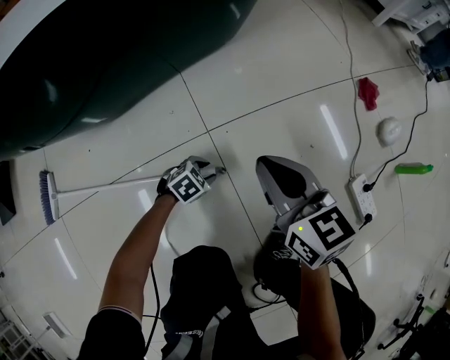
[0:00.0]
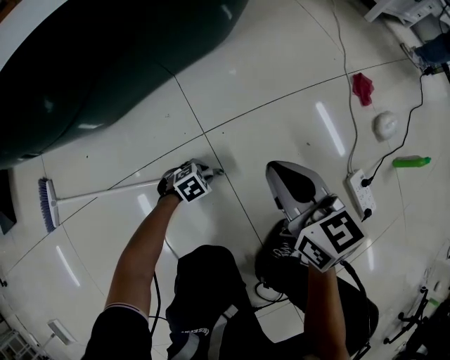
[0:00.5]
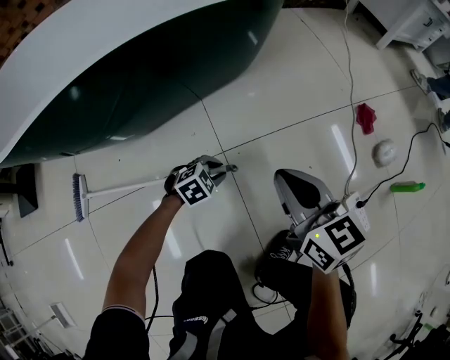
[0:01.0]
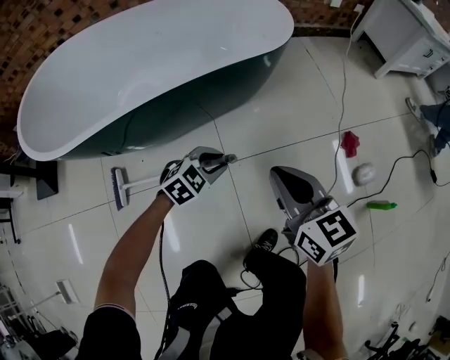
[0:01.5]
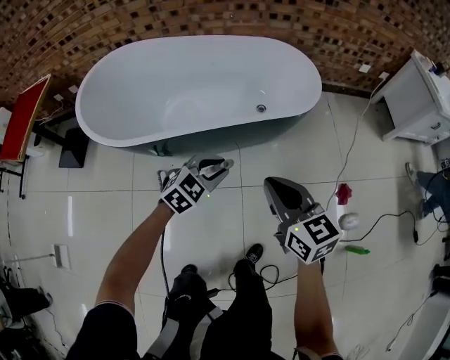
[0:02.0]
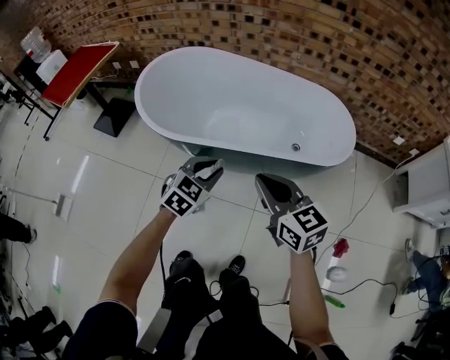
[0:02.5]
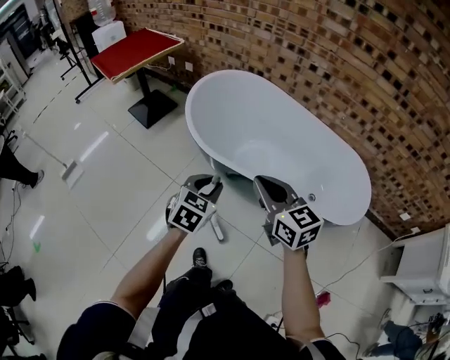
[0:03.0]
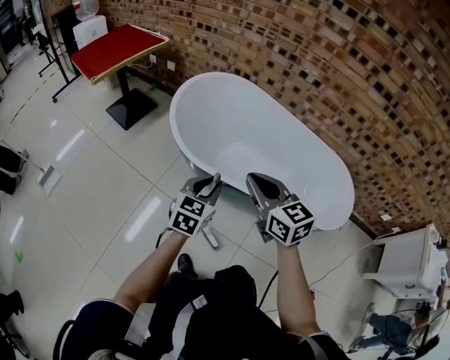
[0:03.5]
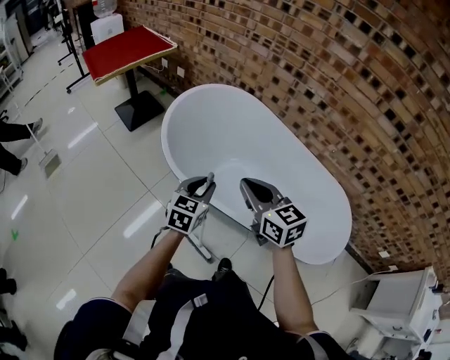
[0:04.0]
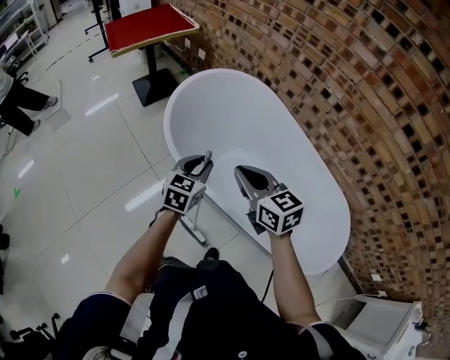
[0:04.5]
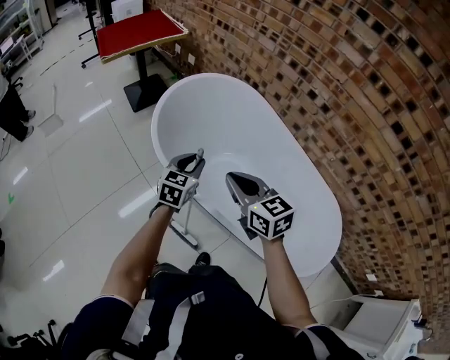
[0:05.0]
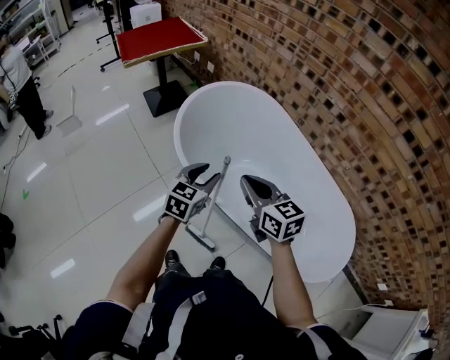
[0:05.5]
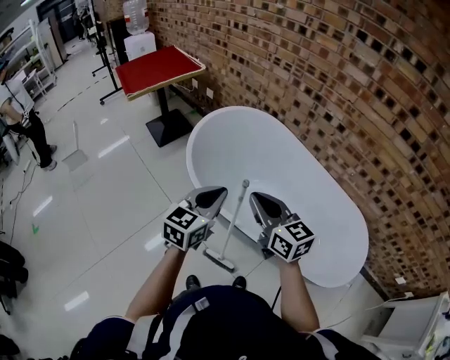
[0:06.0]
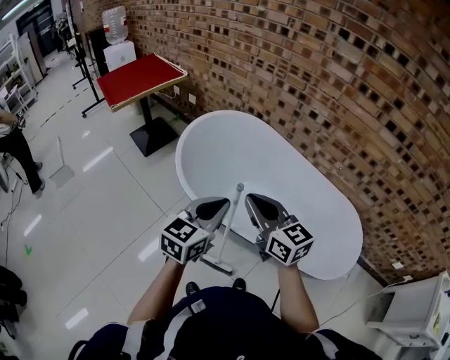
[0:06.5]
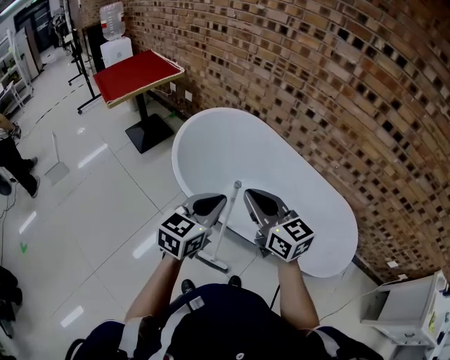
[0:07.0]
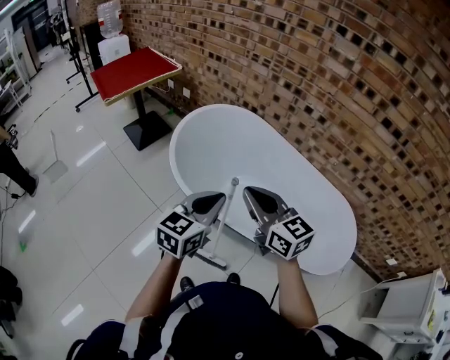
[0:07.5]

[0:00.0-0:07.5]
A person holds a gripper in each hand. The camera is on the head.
0:00.0 to 0:02.0: The two grippers go some 60 cm upward. The right gripper swivels about 20 degrees, while the left gripper rotates some 40 degrees.
0:02.0 to 0:04.0: The left gripper moves approximately 35 cm, and swivels some 70 degrees. Meanwhile the right gripper changes place by about 40 cm, and changes its angle by some 50 degrees.
0:05.5 to 0:07.5: The right gripper travels upward by some 10 cm. The left gripper is displaced upward and backward by about 15 cm, turns by some 20 degrees, and closes.

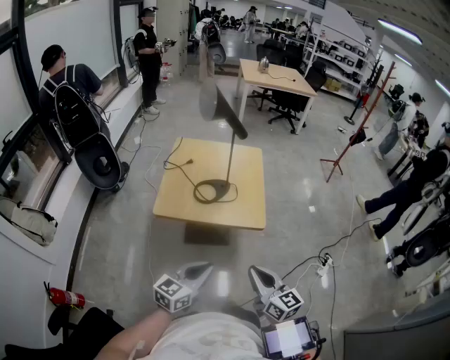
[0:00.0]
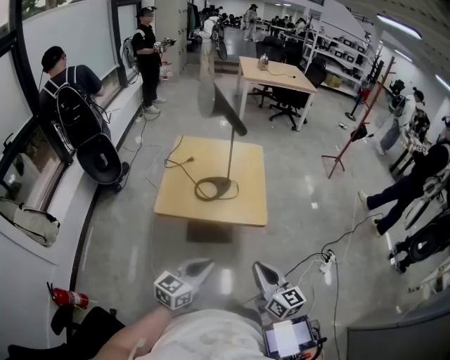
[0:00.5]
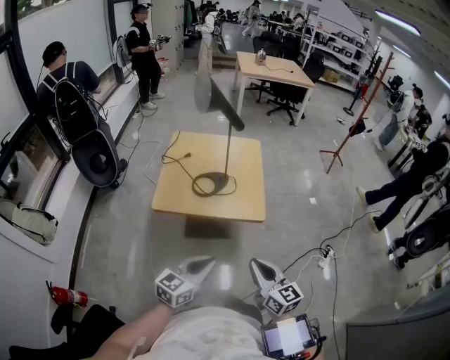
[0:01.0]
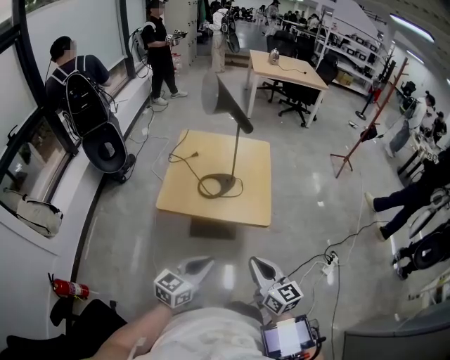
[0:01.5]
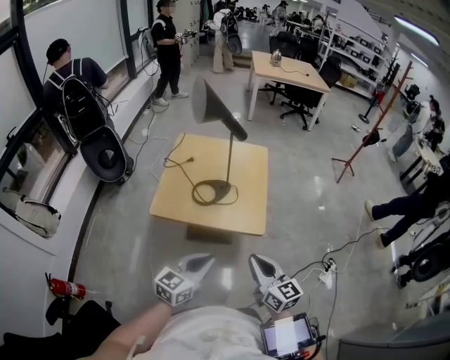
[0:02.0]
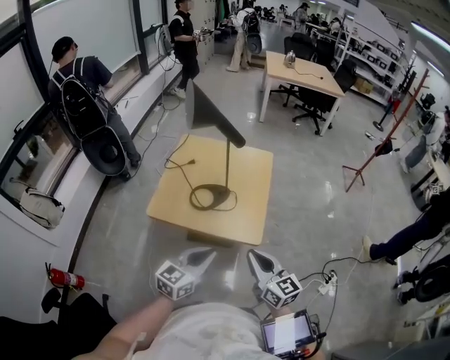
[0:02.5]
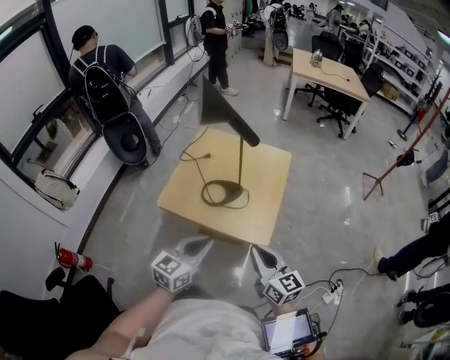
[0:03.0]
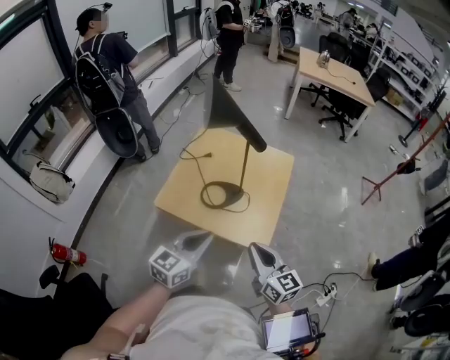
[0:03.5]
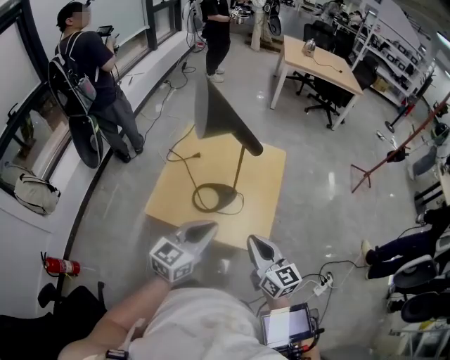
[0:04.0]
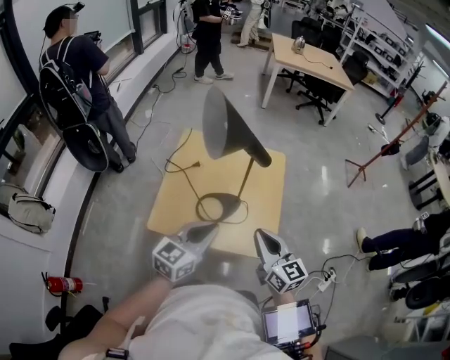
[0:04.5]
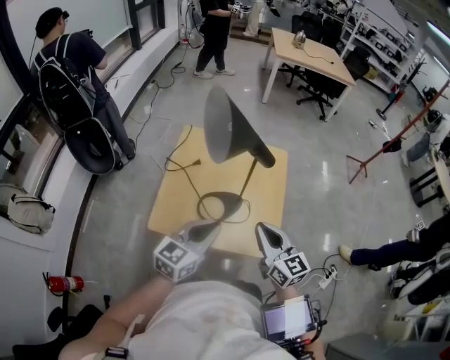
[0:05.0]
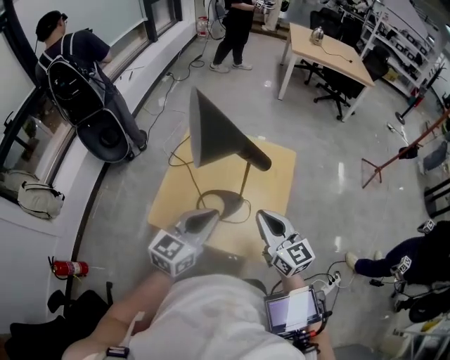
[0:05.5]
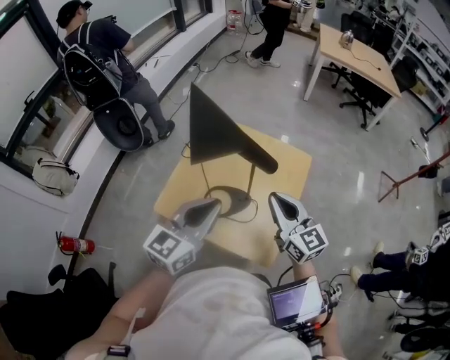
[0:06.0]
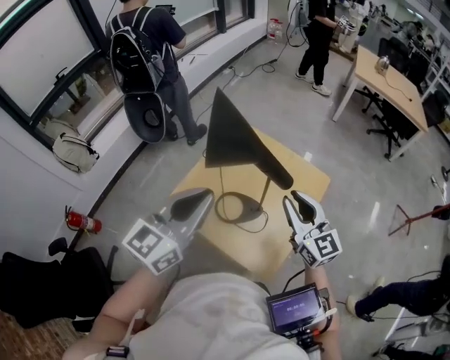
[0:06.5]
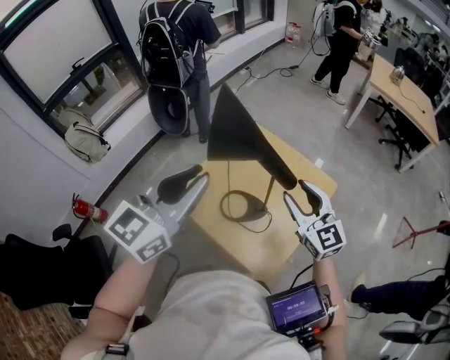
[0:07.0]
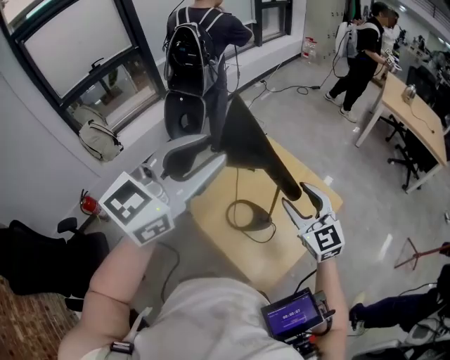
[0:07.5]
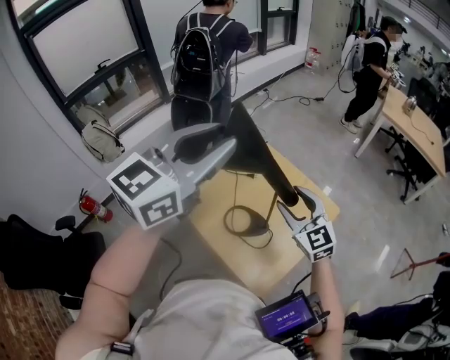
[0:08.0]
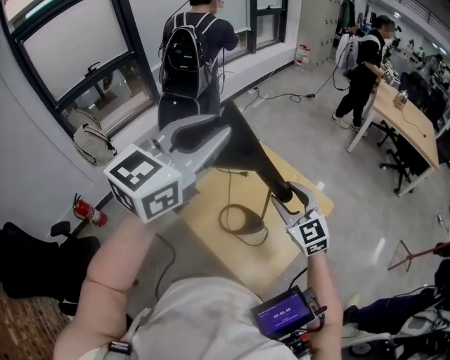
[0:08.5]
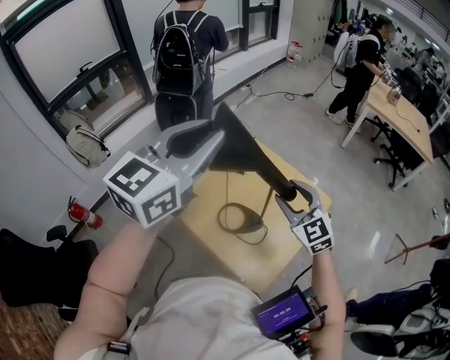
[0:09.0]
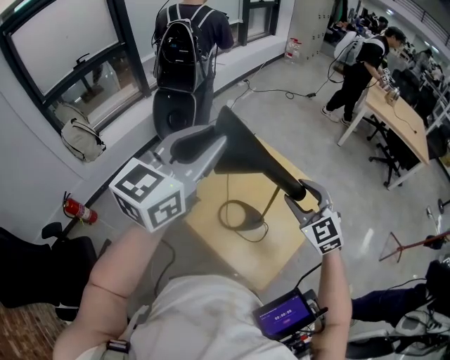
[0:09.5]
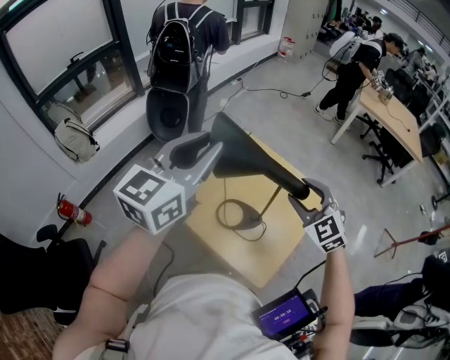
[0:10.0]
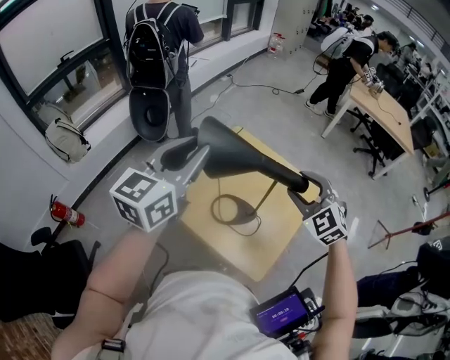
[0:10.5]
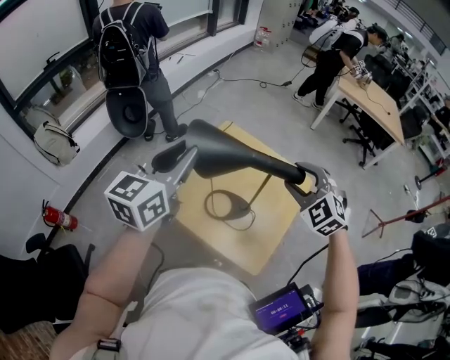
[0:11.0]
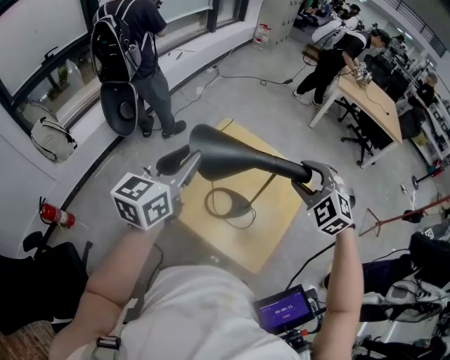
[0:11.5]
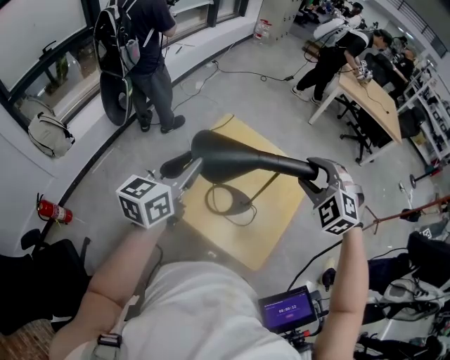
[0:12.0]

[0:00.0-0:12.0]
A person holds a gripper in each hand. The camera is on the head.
0:00.0 to 0:02.0: The grippers both shift forward by roughly 10 cm.
0:02.0 to 0:04.0: The grippers both shift forward by roughly 20 cm.
0:04.0 to 0:06.0: The left gripper shifts about 10 cm forward and upward; the right gripper goes roughly 20 cm forward.
0:06.0 to 0:08.0: The right gripper is displaced forward by about 10 cm, changes its angle by approximately 30 degrees, and opens; the left gripper is displaced upward by about 25 cm, swivels some 20 degrees, and opens.
0:08.0 to 0:10.0: The right gripper turns by about 20 degrees. The left gripper is displaced downward by some 5 cm.
0:10.0 to 0:12.0: The right gripper turns by about 30 degrees. Meanwhile the left gripper shifts some 15 cm downward.

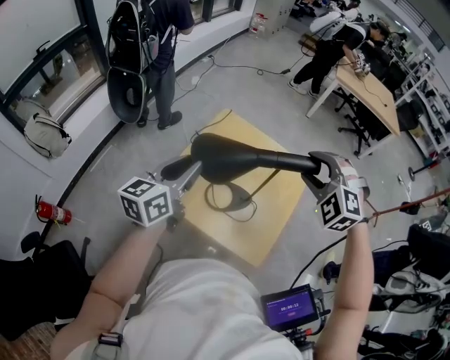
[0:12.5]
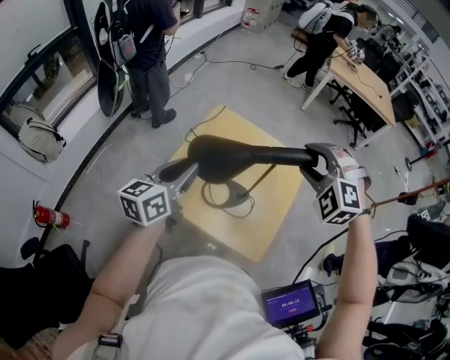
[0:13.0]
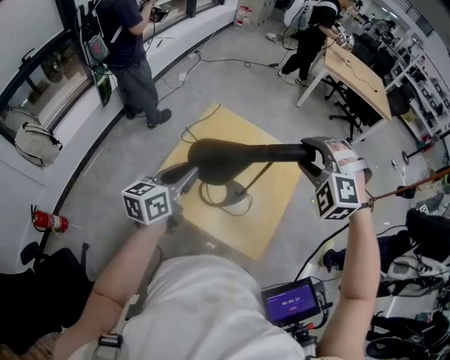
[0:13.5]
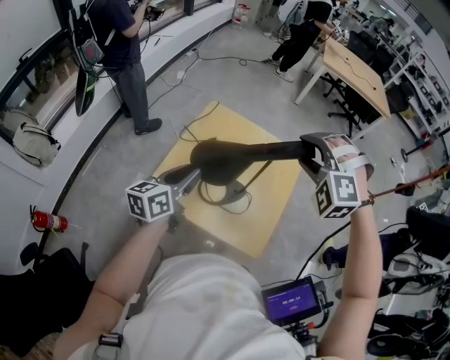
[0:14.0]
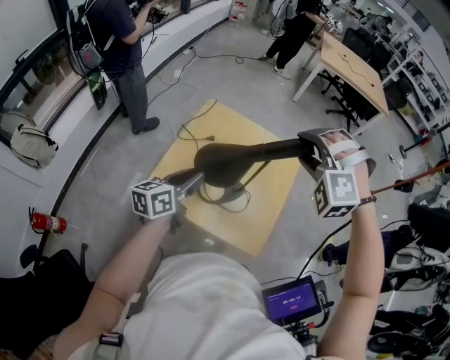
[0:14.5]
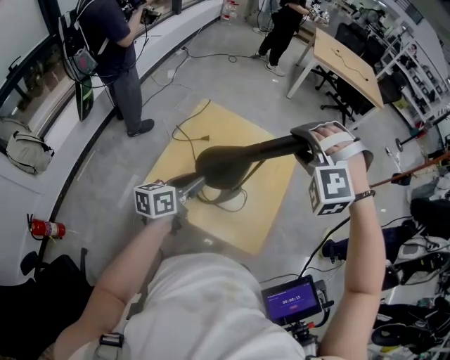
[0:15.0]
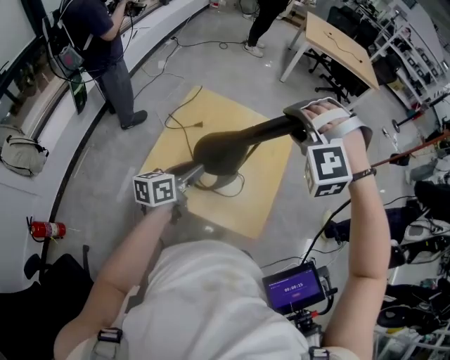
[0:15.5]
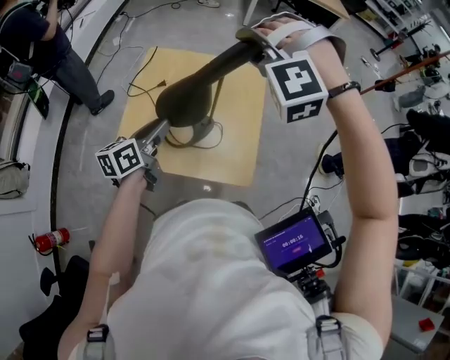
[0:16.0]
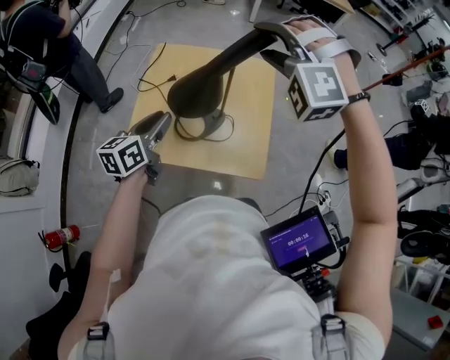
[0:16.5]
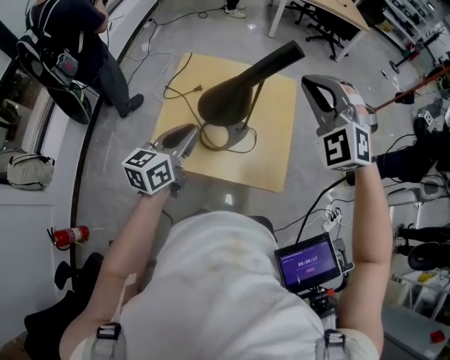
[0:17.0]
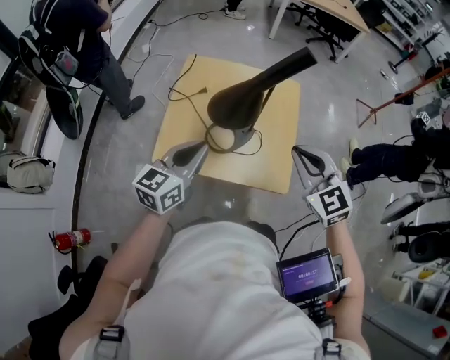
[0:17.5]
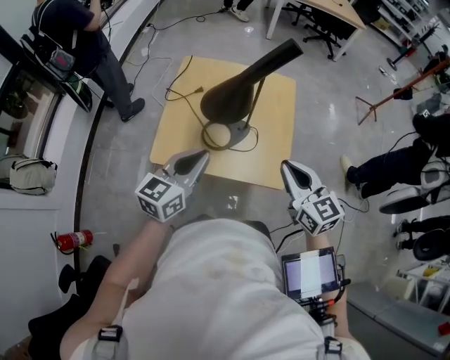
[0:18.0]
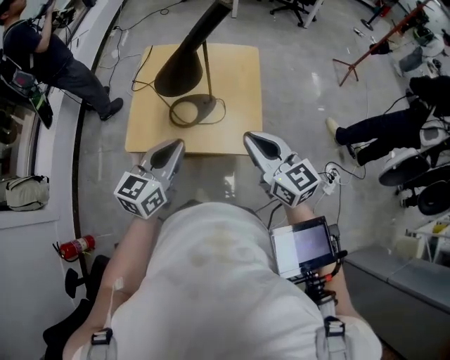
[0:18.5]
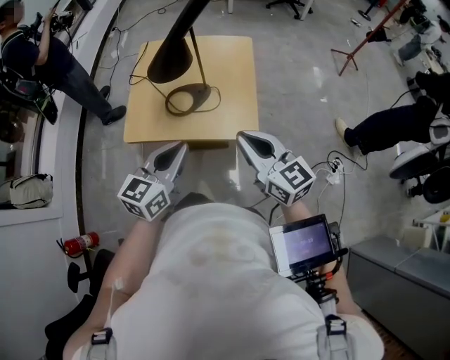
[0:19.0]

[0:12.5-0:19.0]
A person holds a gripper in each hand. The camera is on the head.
0:12.5 to 0:14.5: The left gripper heads downward, covering approximately 10 cm. The right gripper swivels about 20 degrees.
0:14.5 to 0:17.0: The right gripper shifts approximately 5 cm backward, swivels about 40 degrees, and closes its fingers.
0:17.0 to 0:19.0: The left gripper travels backward and to the right by some 20 cm, while the right gripper heads backward and downward, covering about 30 cm, and rotates around the line of its fingers by approximately 80 degrees, clockwise from behind.

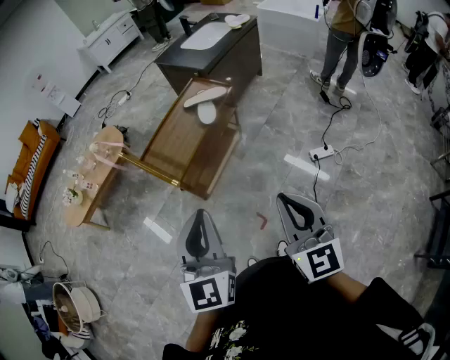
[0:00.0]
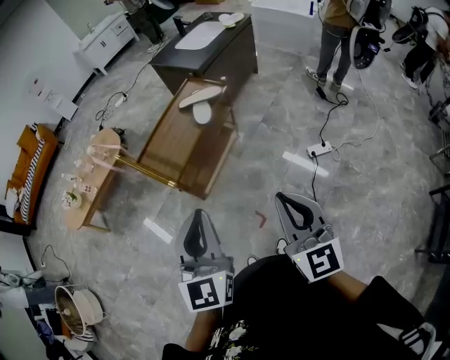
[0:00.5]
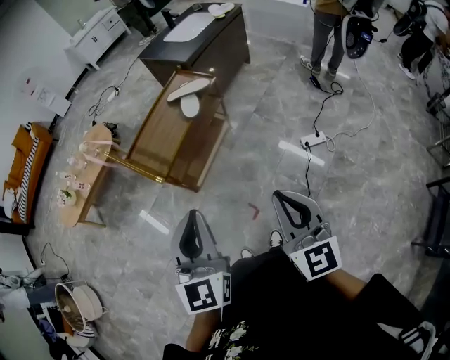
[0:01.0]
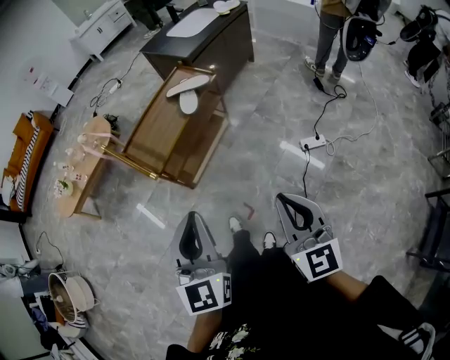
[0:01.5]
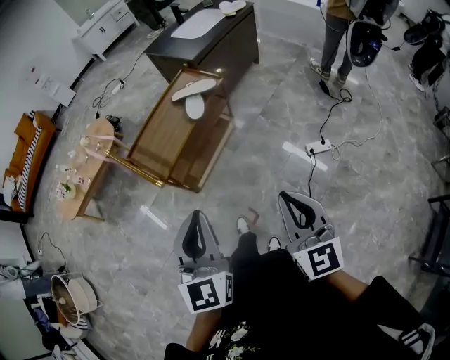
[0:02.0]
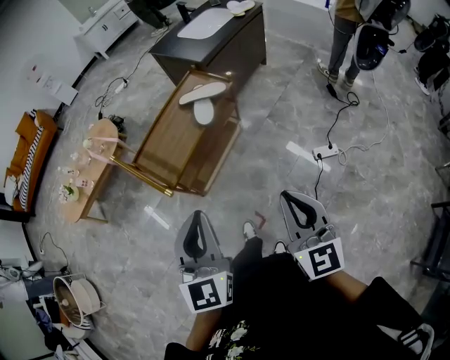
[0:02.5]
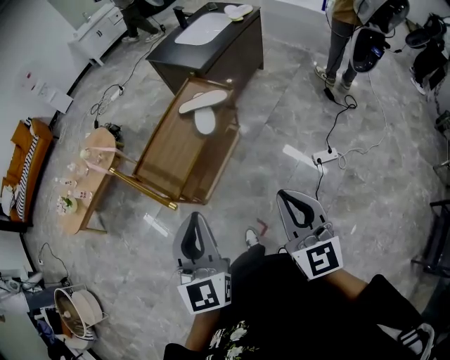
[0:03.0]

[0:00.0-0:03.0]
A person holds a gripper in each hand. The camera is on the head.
0:00.0 to 0:01.5: Both grippers move to the right, roughly 5 cm.
0:01.5 to 0:03.0: Both grippers move forward, about 15 cm.
